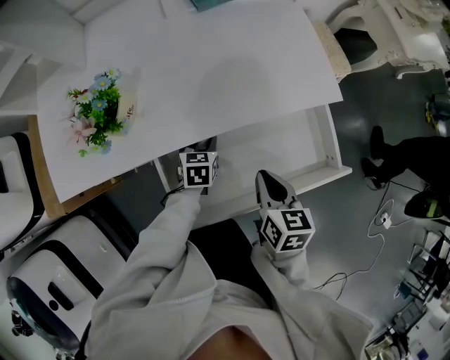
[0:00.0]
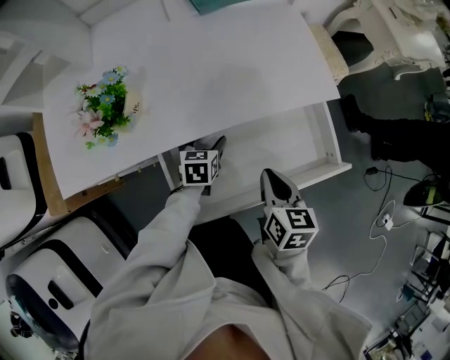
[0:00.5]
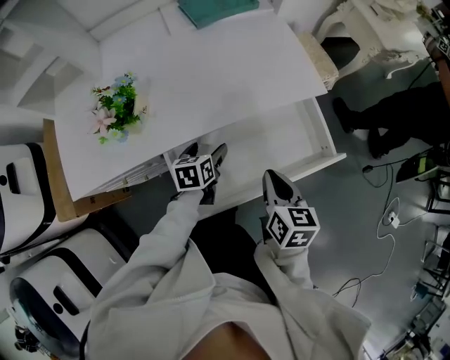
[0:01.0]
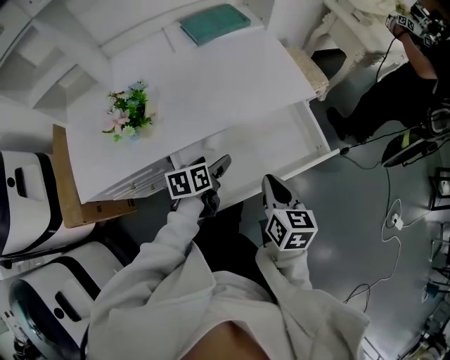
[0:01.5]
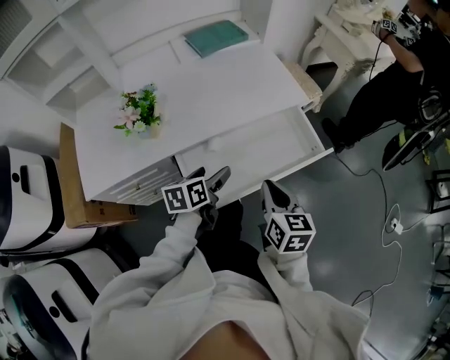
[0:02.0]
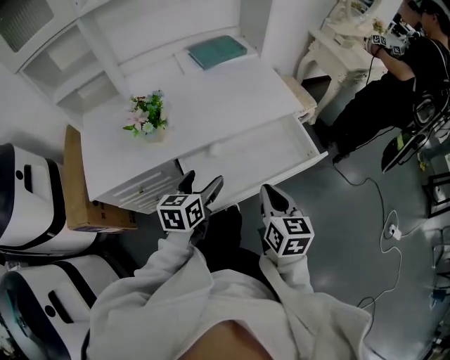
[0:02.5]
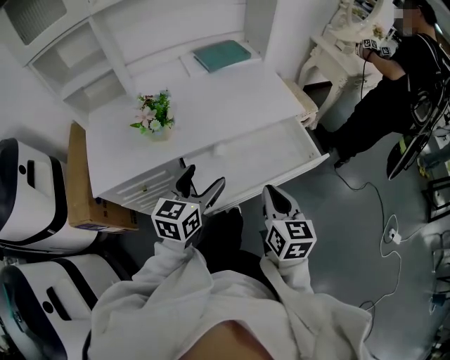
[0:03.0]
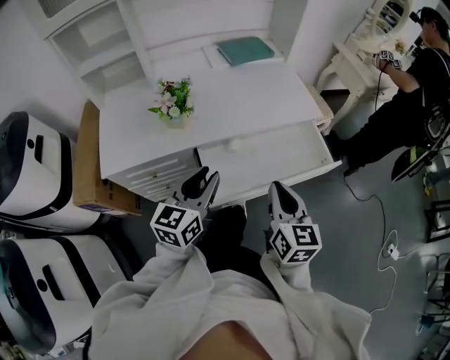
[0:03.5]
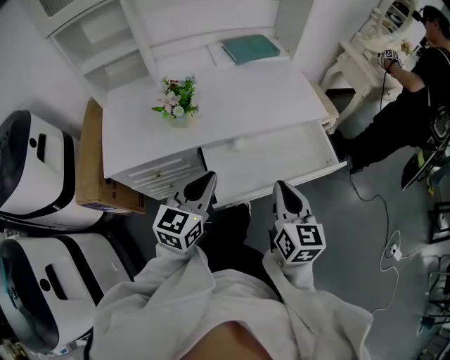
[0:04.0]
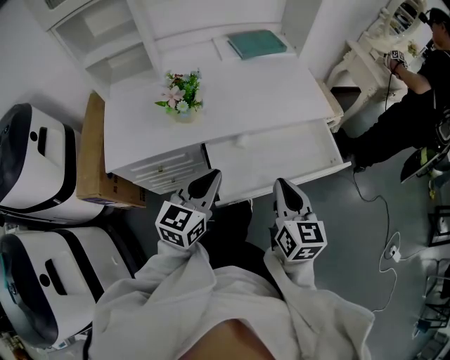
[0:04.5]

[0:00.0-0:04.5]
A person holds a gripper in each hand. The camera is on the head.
0:00.0 to 0:02.0: The right gripper is displaced backward and upward by approximately 15 cm. Meanwhile the left gripper goes some 20 cm upward and backward, changes its angle by approximately 30 degrees, and opens its fingers.
0:02.0 to 0:04.5: The right gripper travels upward and to the left by some 10 cm. The left gripper shifts about 15 cm upward, backward and to the left, rotates about 40 degrees, and closes.

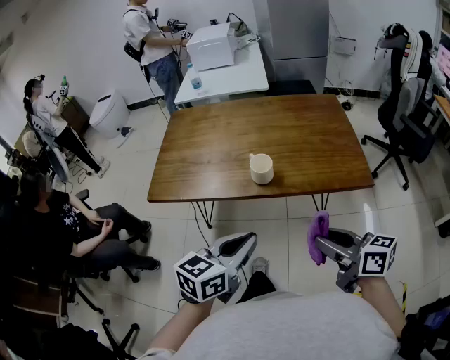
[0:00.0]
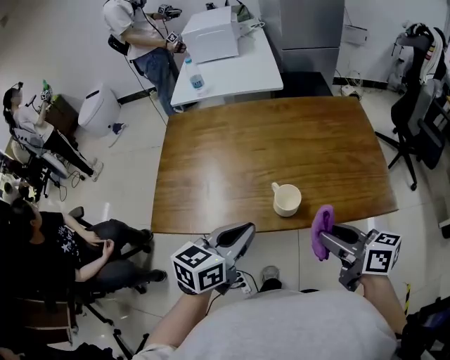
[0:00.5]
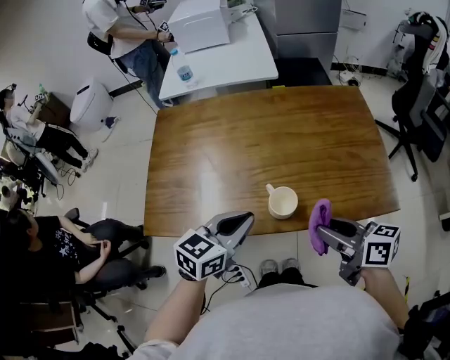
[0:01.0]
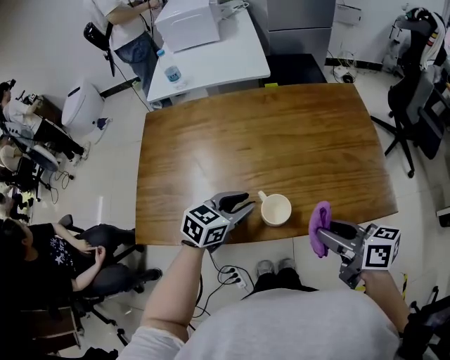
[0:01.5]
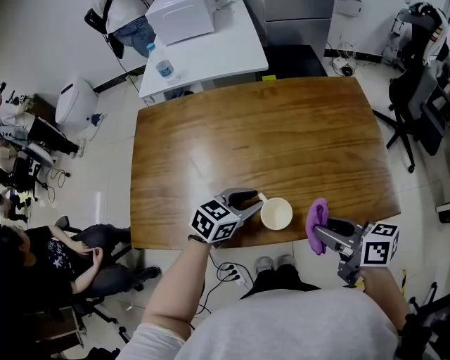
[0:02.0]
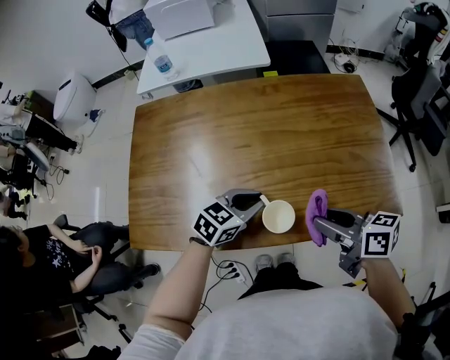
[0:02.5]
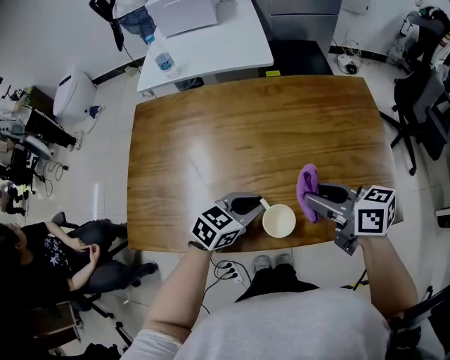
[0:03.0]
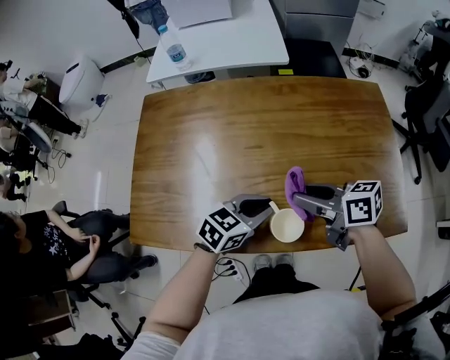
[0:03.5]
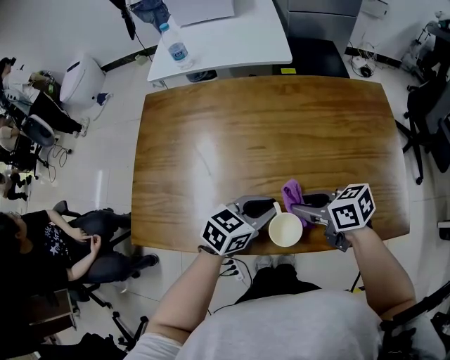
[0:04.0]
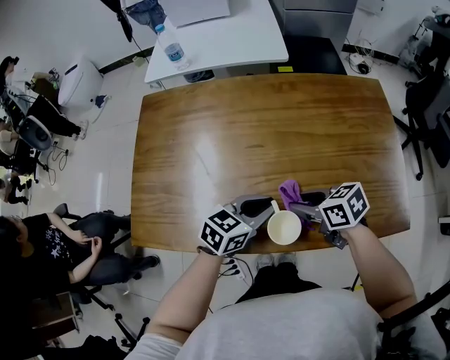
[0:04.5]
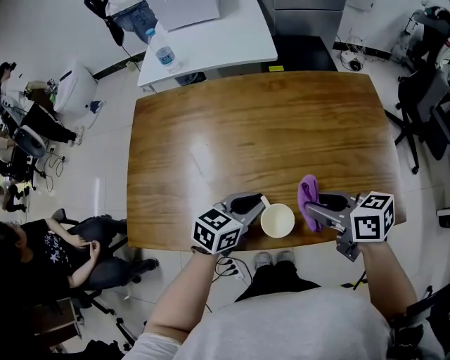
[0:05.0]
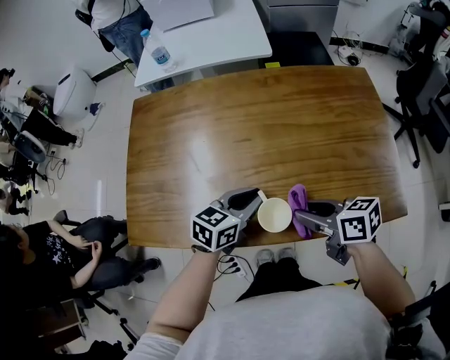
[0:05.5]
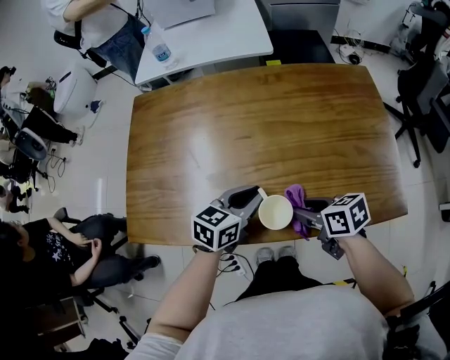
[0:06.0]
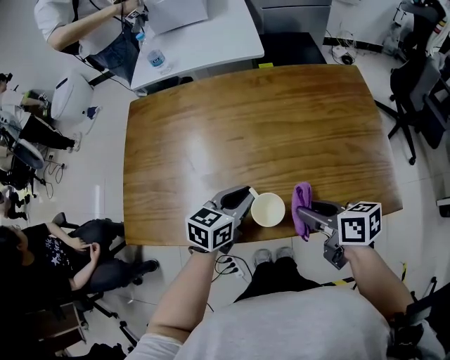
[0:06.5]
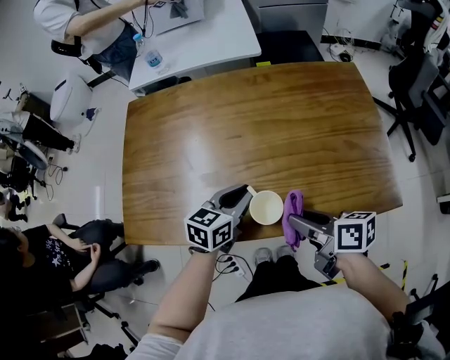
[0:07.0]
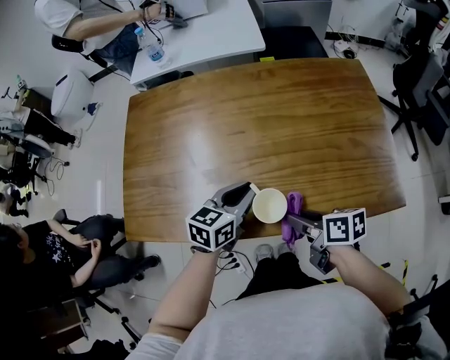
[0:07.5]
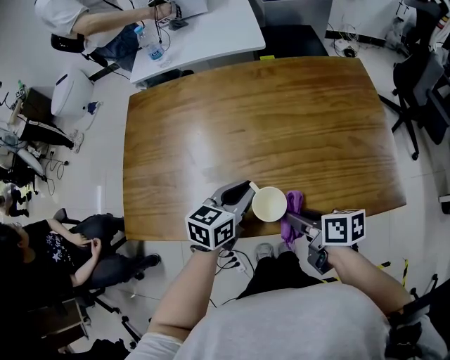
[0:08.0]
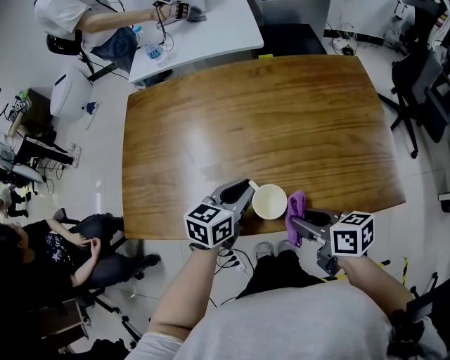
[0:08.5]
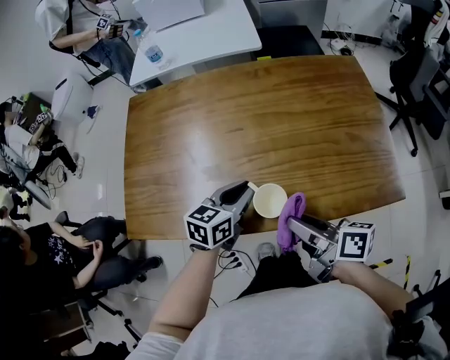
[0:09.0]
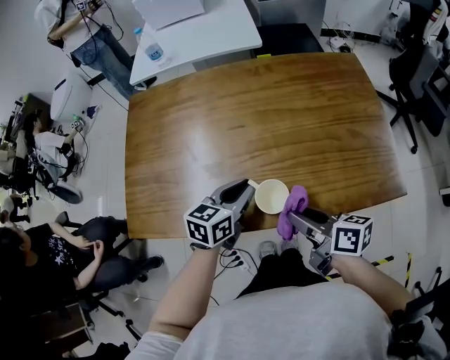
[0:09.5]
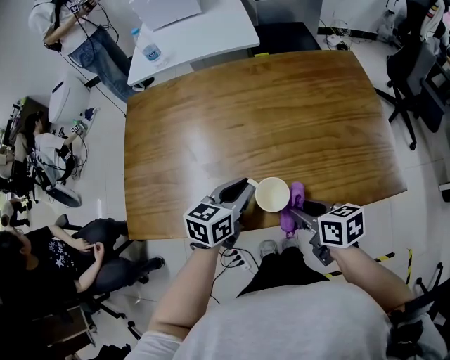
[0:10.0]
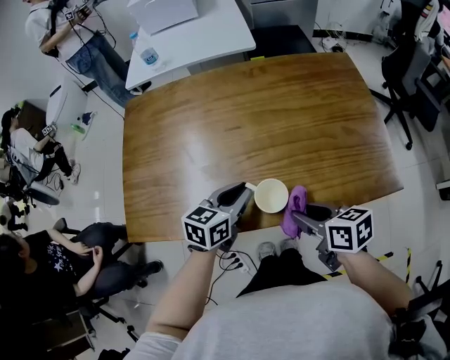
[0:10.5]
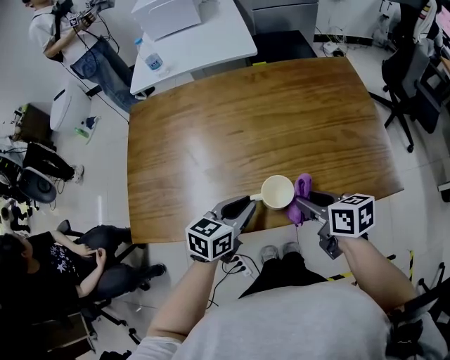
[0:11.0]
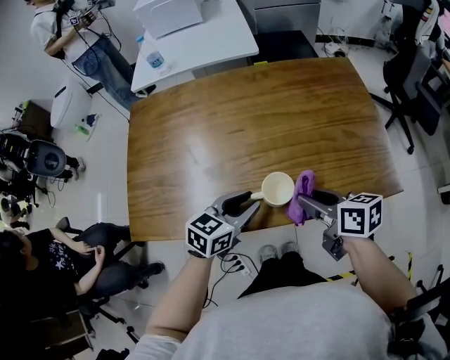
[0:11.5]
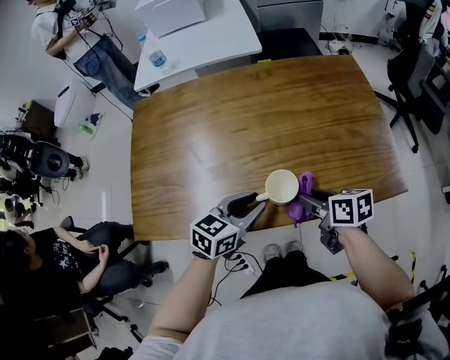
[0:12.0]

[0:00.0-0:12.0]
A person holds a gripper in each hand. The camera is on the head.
0:00.0 to 0:02.0: The left gripper shifts roughly 40 cm forward and downward, rotates about 30 degrees, and opens its fingers. The right gripper shifts roughly 30 cm forward.
0:02.0 to 0:04.0: The right gripper shifts by some 15 cm, and swivels some 30 degrees.
0:04.0 to 0:06.0: The right gripper reaches about 5 cm upward, then returns.
0:06.0 to 0:08.0: The right gripper swivels approximately 20 degrees.
0:08.0 to 0:10.0: The right gripper moves roughly 10 cm upward and comes back.
0:10.0 to 0:12.0: The left gripper shifts by some 5 cm.

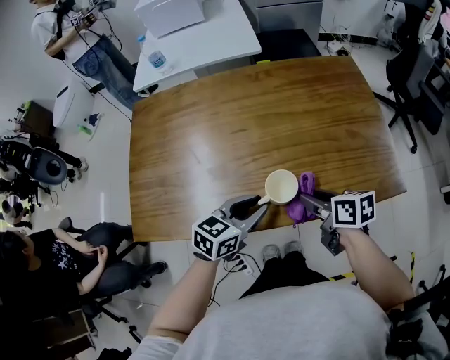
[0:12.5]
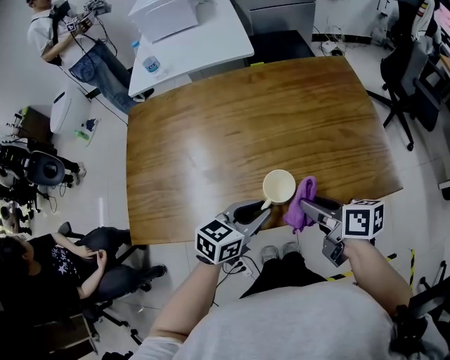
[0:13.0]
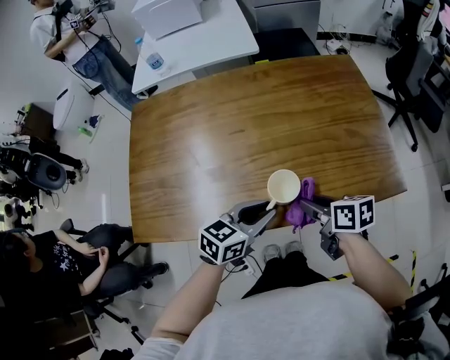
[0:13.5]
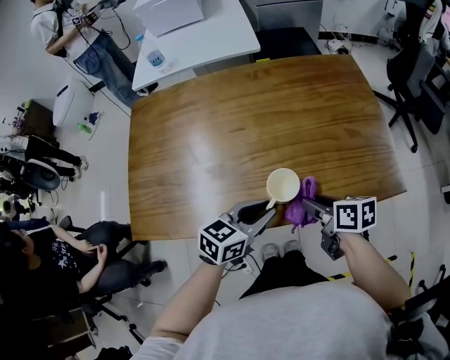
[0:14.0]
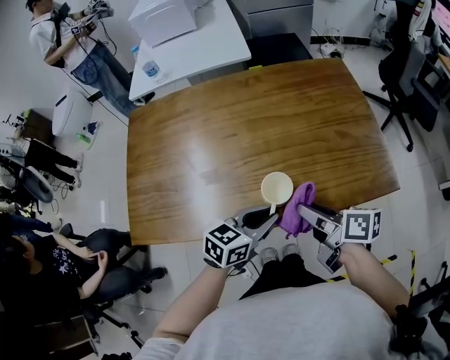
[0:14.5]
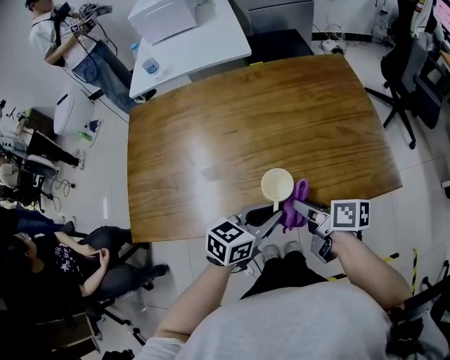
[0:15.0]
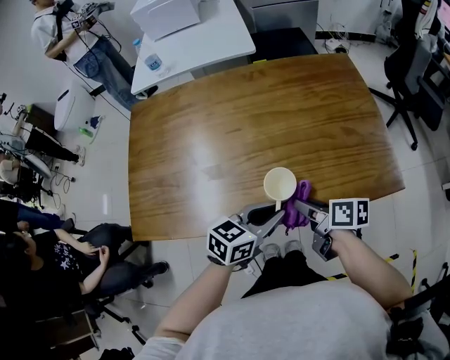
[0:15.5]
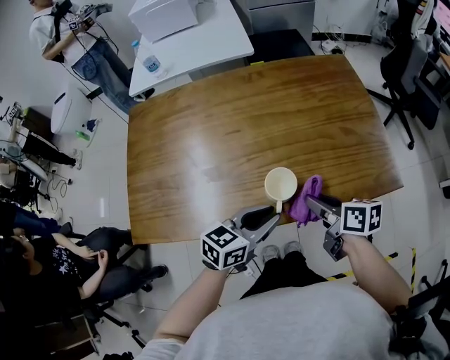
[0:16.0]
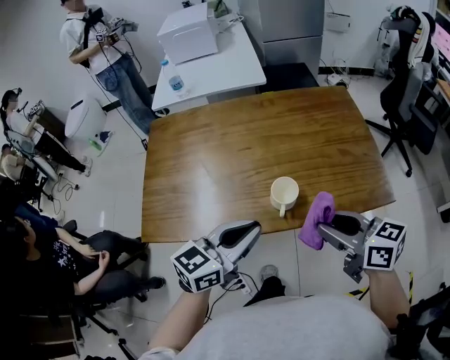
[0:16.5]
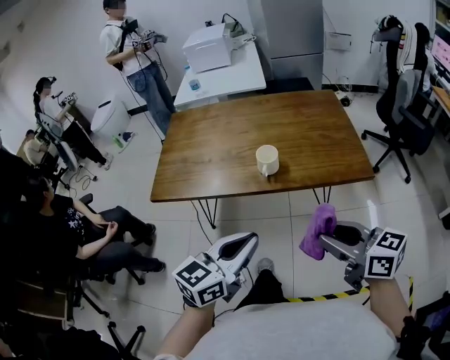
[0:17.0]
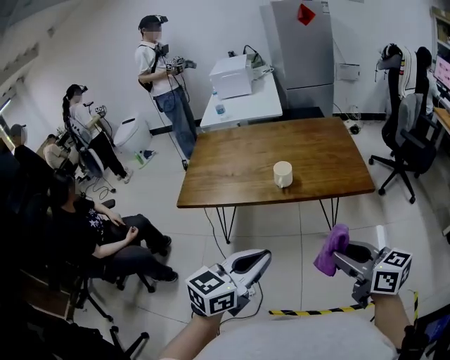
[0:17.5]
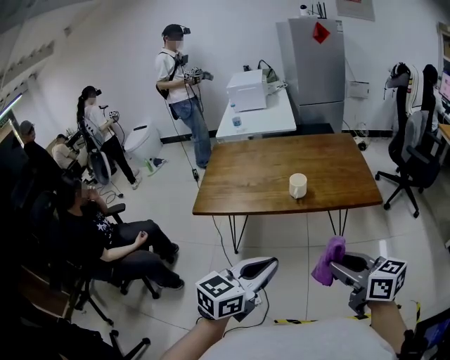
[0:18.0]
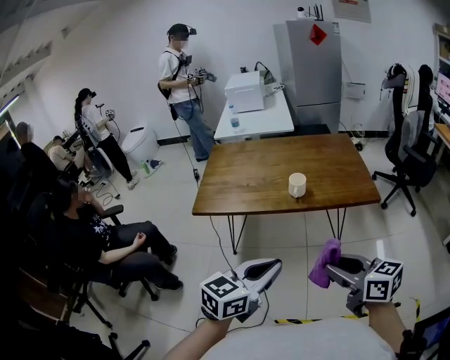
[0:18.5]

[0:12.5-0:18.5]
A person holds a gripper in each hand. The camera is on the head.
0:12.5 to 0:14.5: The left gripper travels to the right by about 5 cm. The right gripper goes up and down, about 5 cm each way, reversing 2 times, and swivels some 20 degrees.
0:14.5 to 0:16.5: The right gripper is displaced upward and backward by approximately 15 cm, and swivels about 30 degrees. Meanwhile the left gripper moves upward, backward and to the left, some 15 cm.
0:16.5 to 0:18.5: Both grippers travel together backward, some 35 cm.

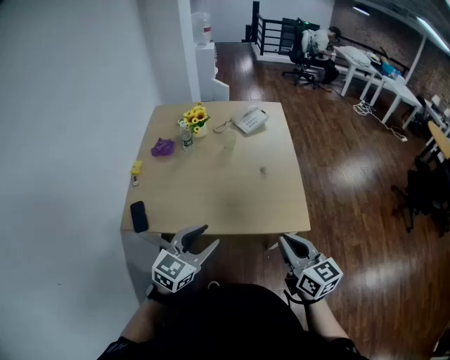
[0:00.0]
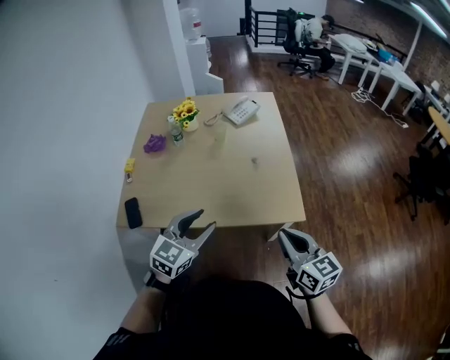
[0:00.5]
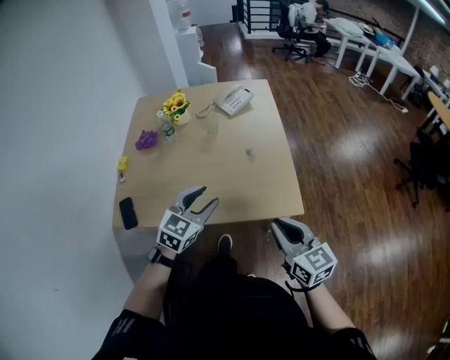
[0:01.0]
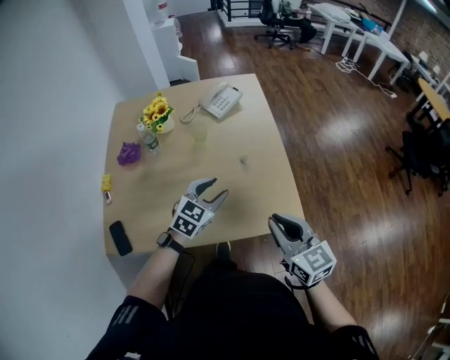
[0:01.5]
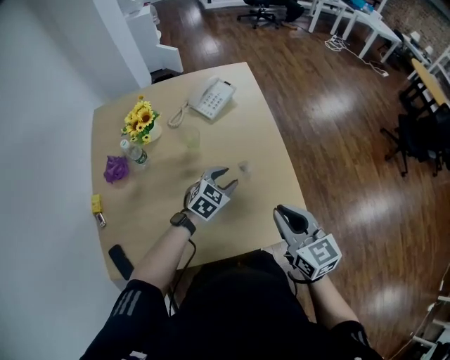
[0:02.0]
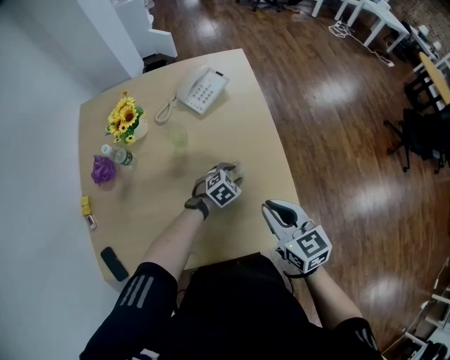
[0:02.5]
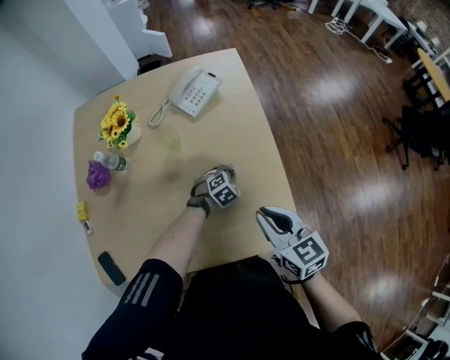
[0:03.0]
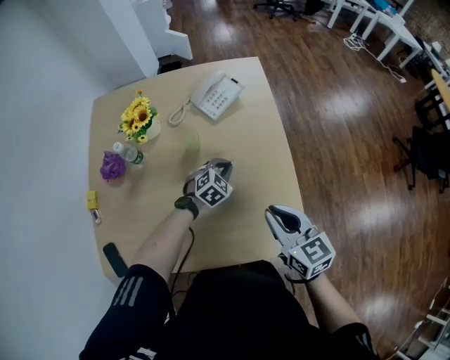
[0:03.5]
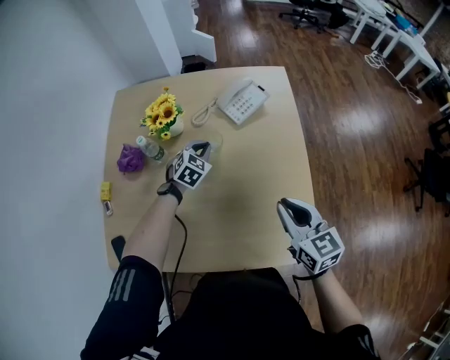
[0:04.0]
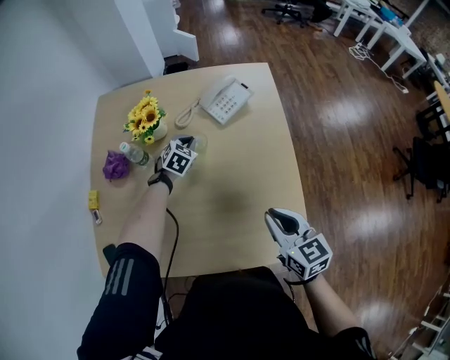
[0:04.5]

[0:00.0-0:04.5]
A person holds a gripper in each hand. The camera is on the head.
0:00.0 to 0:02.0: The right gripper moves forward, some 25 cm; the left gripper travels forward and downward by approximately 40 cm, and rotates approximately 30 degrees.
0:02.0 to 0:04.5: The right gripper heads forward and downward, covering about 10 cm, while the left gripper is displaced forward and to the left by approximately 25 cm, changes its angle by some 20 degrees, and closes its fingers.
